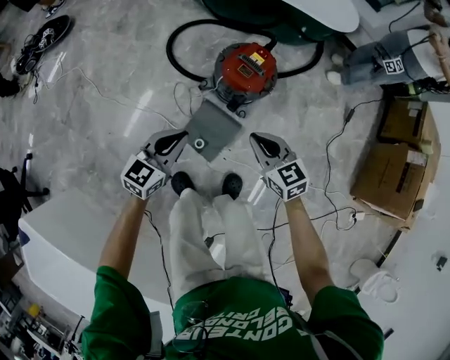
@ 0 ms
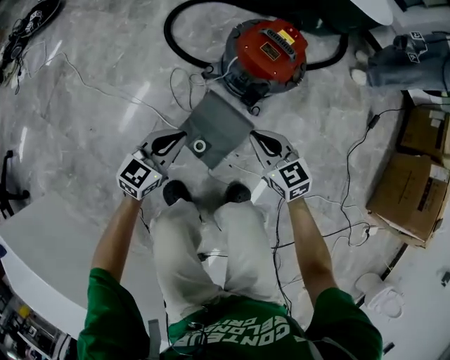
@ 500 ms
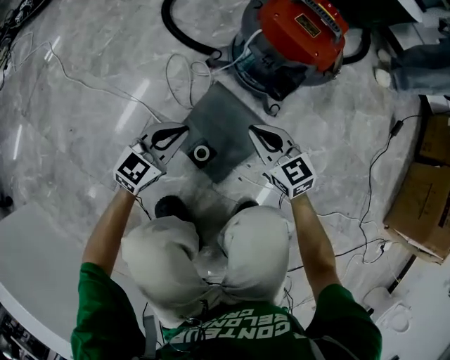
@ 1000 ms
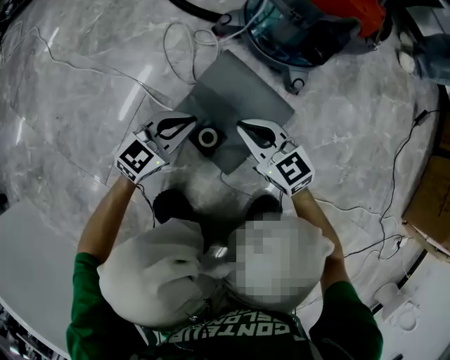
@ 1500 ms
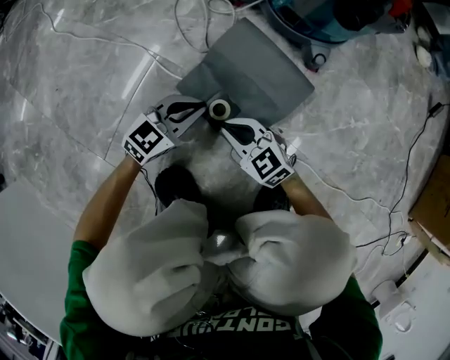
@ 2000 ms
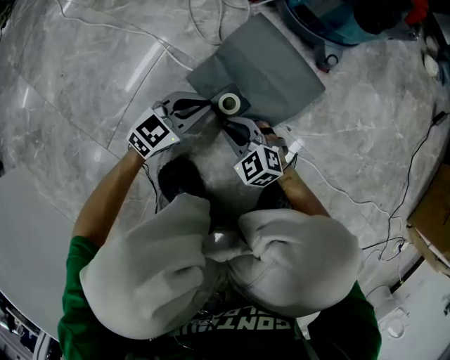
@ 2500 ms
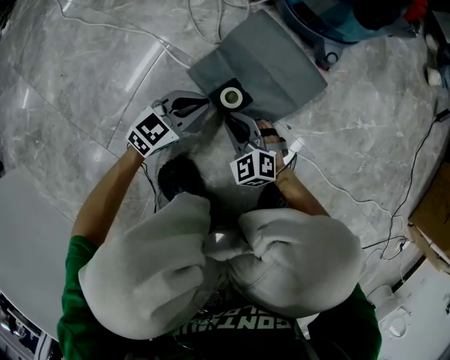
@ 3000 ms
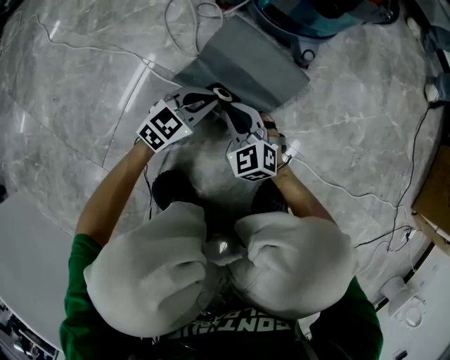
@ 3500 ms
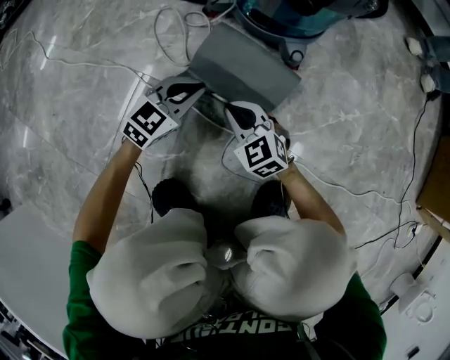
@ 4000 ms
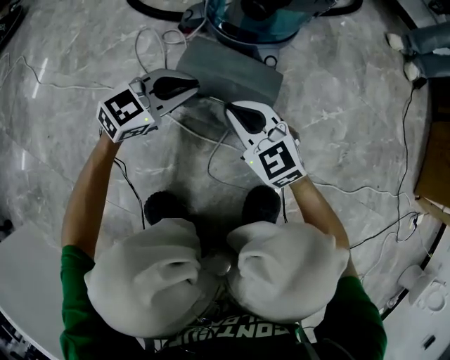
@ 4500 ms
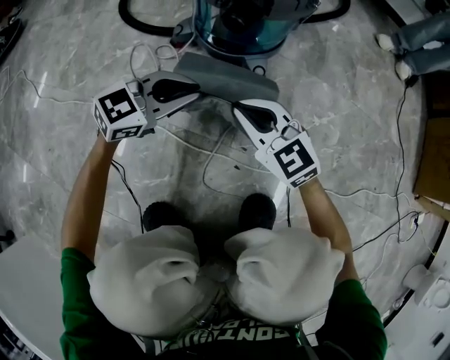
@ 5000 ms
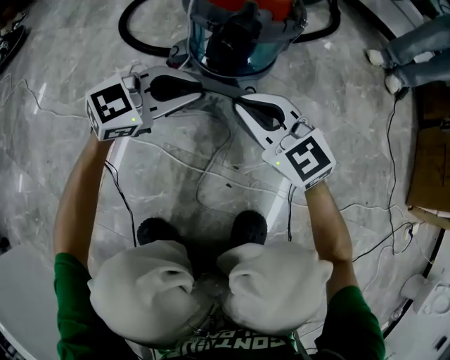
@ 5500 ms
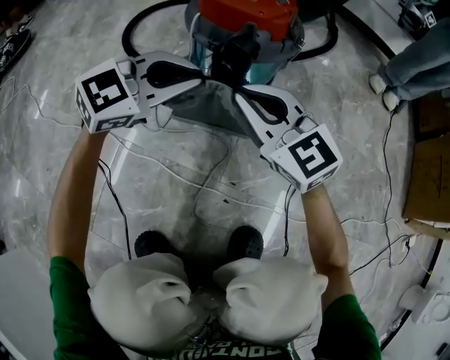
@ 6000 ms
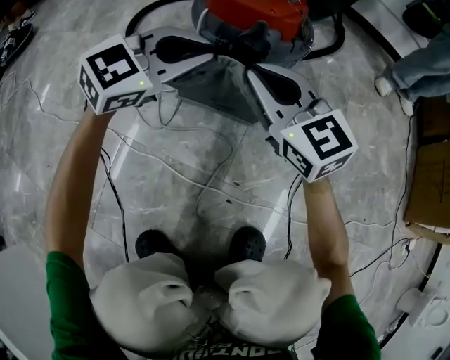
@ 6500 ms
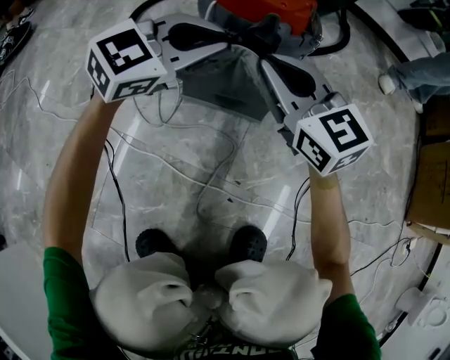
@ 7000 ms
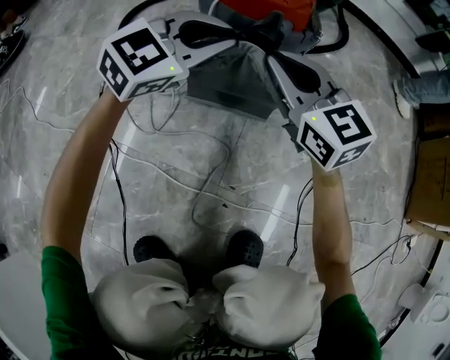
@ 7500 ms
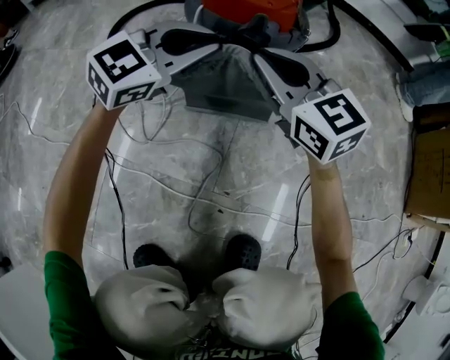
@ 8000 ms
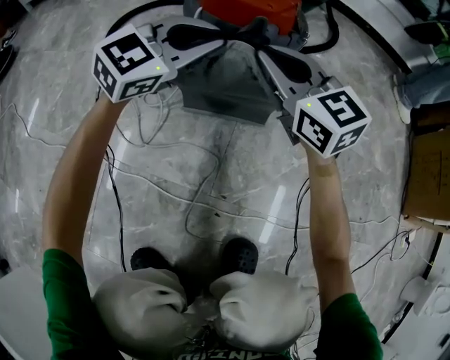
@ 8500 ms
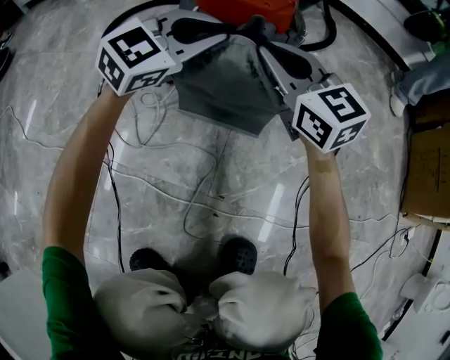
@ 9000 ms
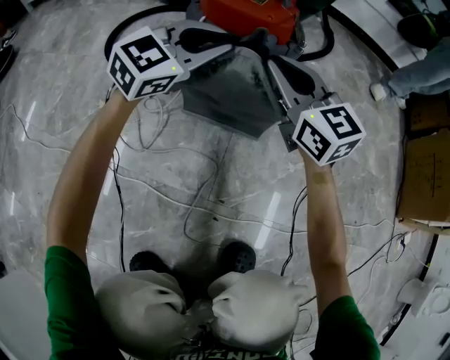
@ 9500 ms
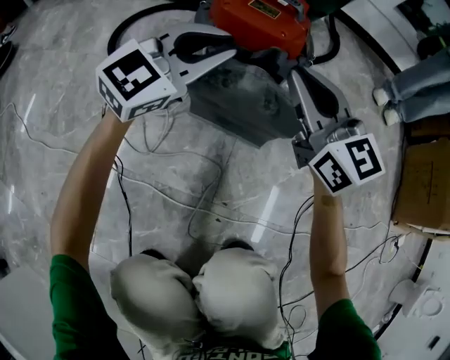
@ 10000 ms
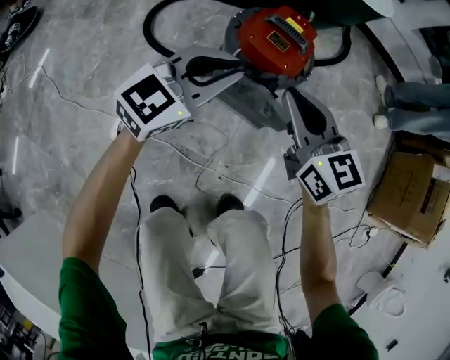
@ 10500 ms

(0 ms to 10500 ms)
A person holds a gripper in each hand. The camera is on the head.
0 ms - 2000 ms: Both grippers move downward, some 60 cm. The right gripper rotates about 30 degrees.
2000 ms - 4000 ms: The two grippers go about 5 cm forward. The right gripper rotates approximately 20 degrees.
4000 ms - 6500 ms: Both grippers travel together upward and forward, approximately 30 cm. The left gripper rotates some 20 degrees, while the right gripper turns by approximately 30 degrees.
6500 ms - 8500 ms: Both grippers move forward and to the right, some 10 cm.
8500 ms - 10500 ms: Both grippers travel together upward, about 20 cm.

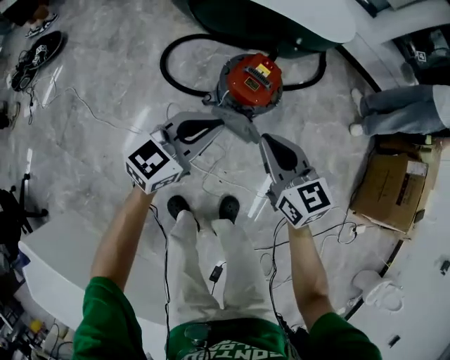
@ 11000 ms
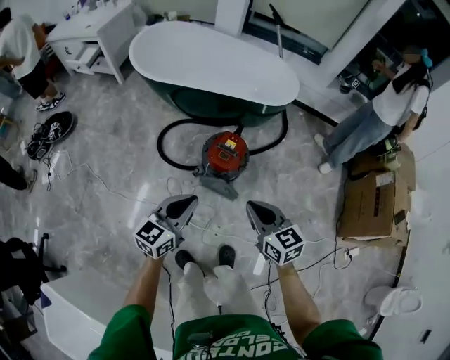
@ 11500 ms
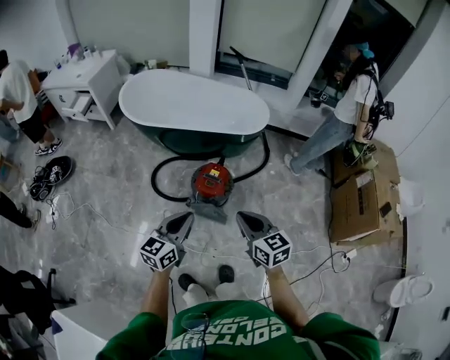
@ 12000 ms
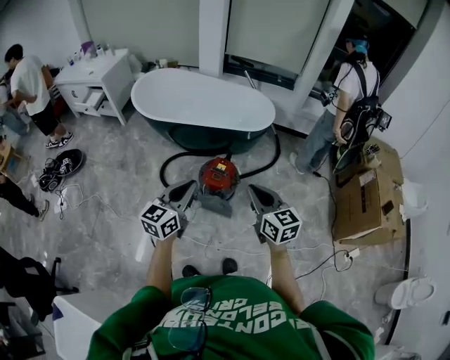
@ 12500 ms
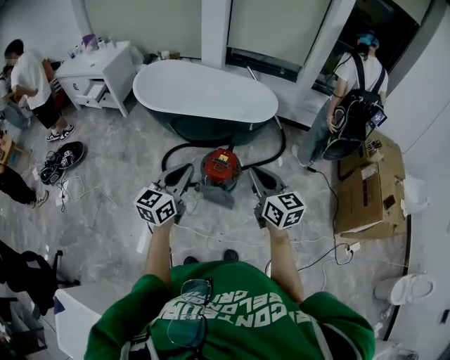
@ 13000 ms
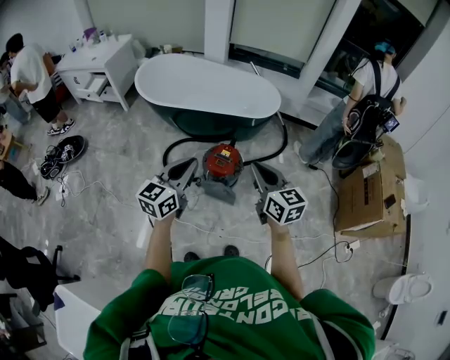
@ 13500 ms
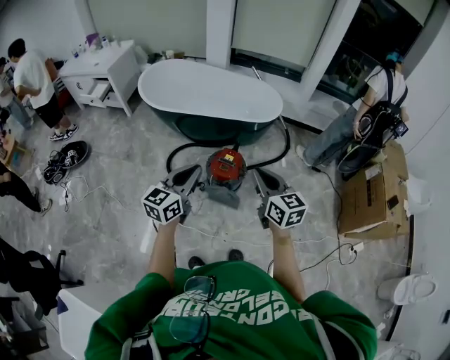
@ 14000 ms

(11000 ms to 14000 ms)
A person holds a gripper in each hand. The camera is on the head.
11000 ms - 12500 ms: The grippers both shift upward by roughly 35 cm.
12500 ms - 14000 ms: The grippers stay close to where they were, moving slightly.

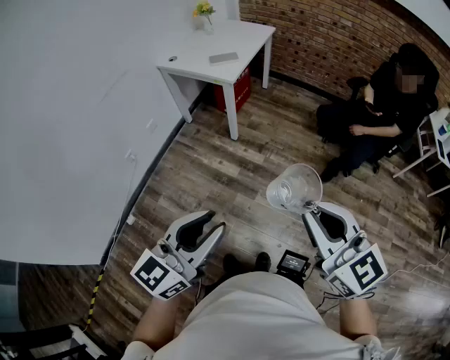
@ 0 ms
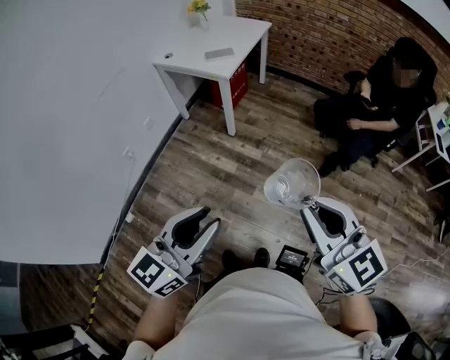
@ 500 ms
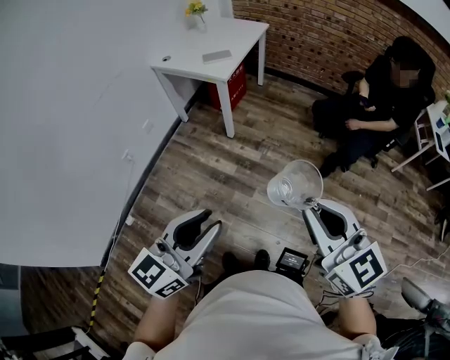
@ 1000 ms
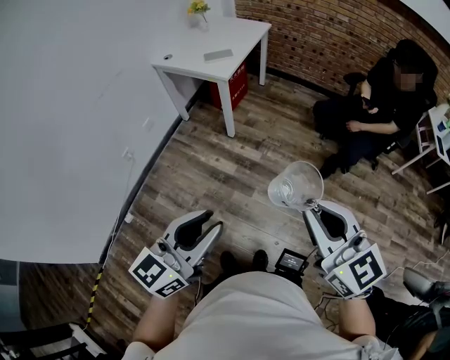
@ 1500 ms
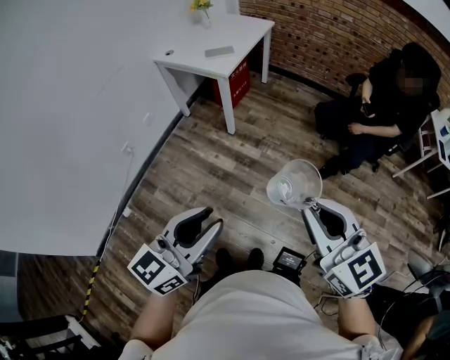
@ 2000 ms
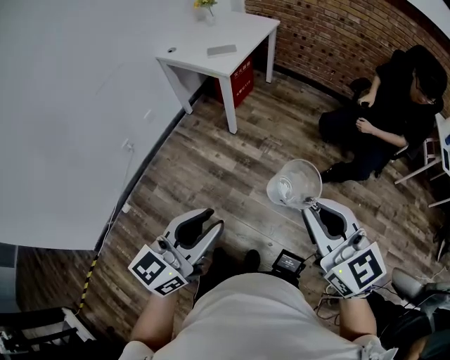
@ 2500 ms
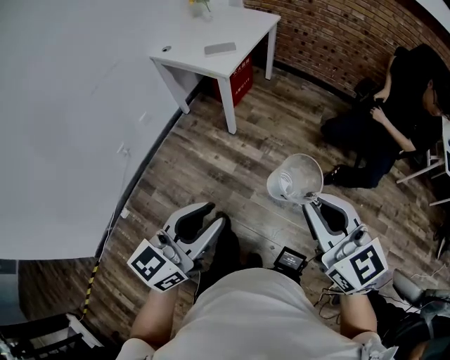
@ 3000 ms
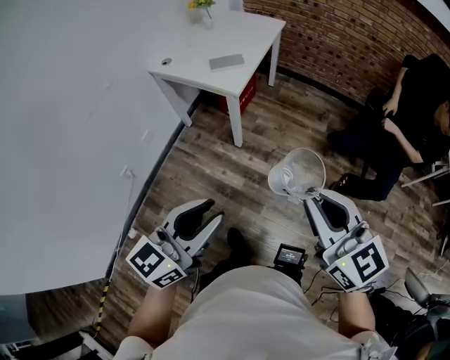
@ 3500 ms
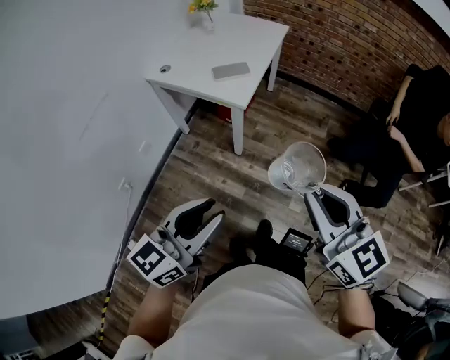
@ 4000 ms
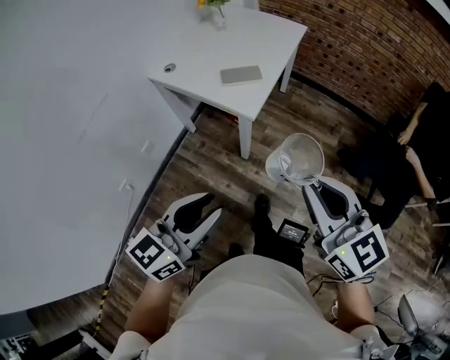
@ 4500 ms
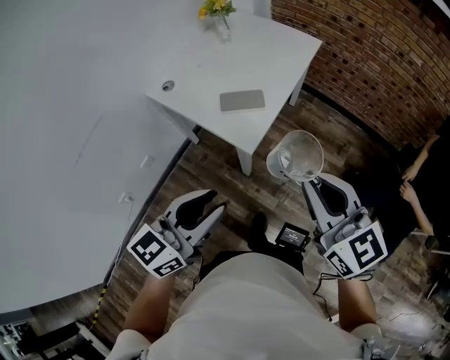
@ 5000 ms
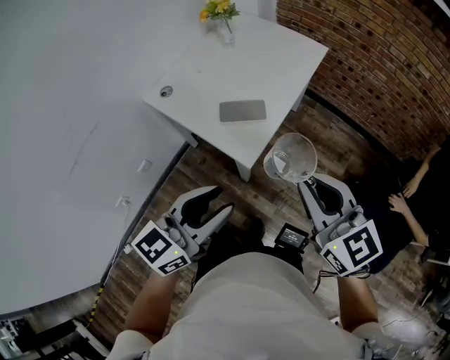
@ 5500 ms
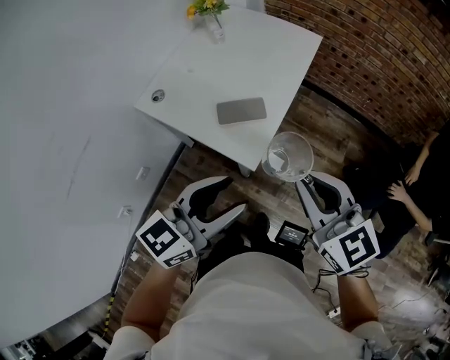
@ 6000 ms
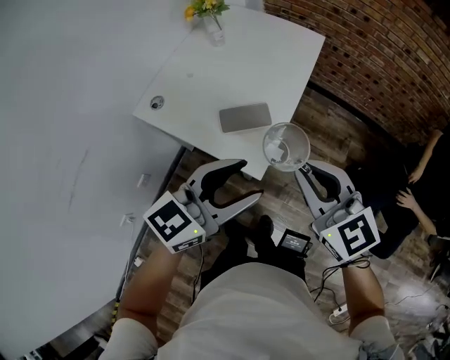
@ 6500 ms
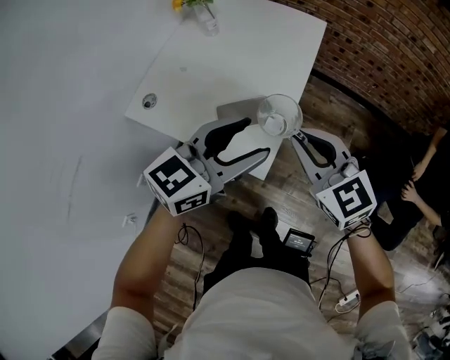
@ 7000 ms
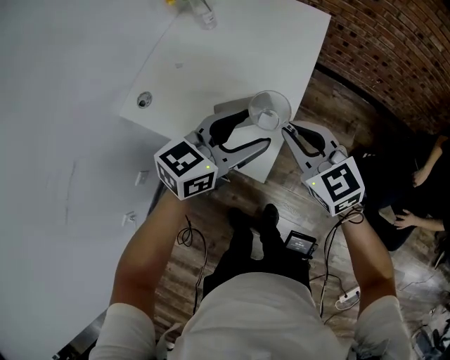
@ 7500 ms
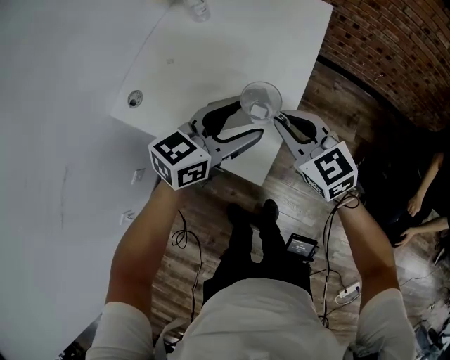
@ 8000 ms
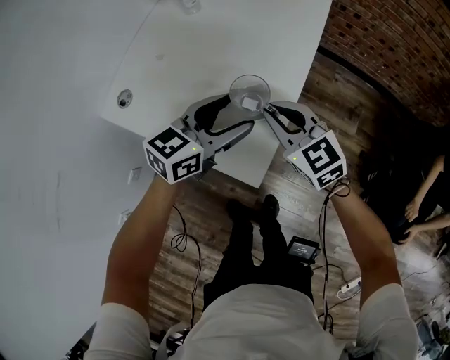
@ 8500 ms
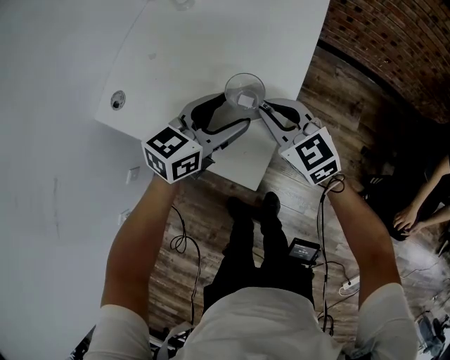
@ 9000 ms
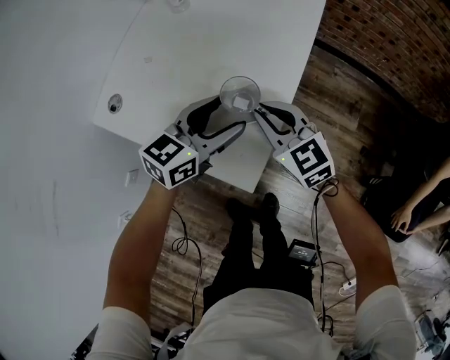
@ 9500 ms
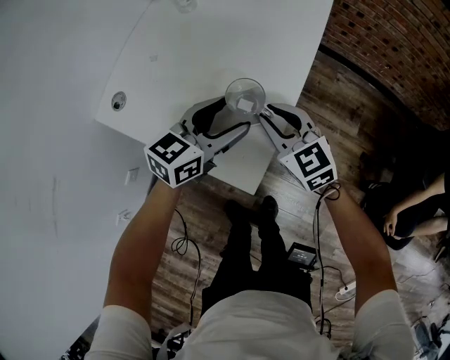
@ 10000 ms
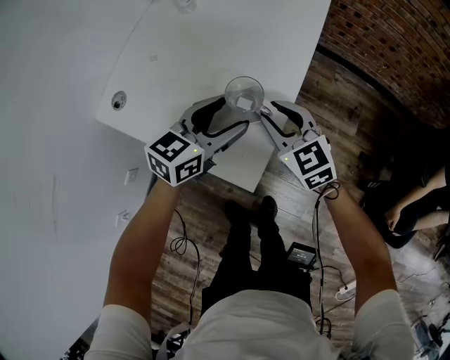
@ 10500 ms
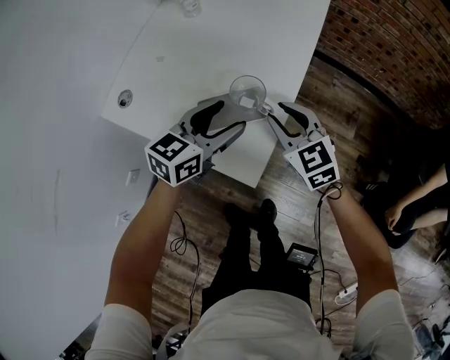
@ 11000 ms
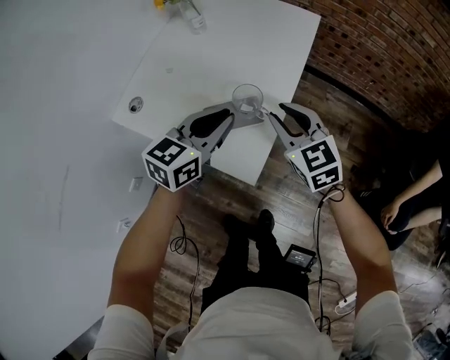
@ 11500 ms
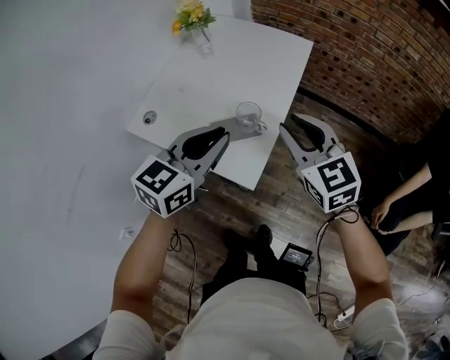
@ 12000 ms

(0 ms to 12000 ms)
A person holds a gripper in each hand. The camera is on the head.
0 ms - 2000 ms: The right gripper heads to the right, covering approximately 5 cm.
2000 ms - 4000 ms: Both grippers travel together forward and to the left, approximately 35 cm.
4000 ms - 6000 ms: Both grippers move forward, roughly 35 cm.
6000 ms - 8000 ms: Both grippers travel together forward and downward, roughly 25 cm.
8000 ms - 10000 ms: The two grippers go about 10 cm downward.
10000 ms - 12000 ms: The left gripper moves upward and backward, some 20 cm, and closes up. The right gripper shifts roughly 20 cm upward.

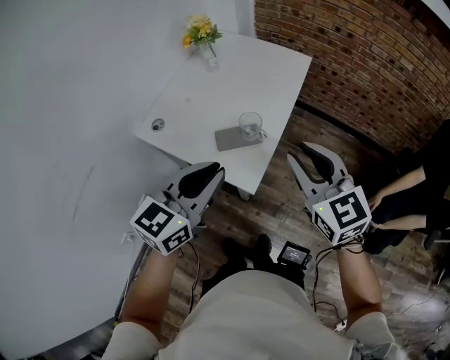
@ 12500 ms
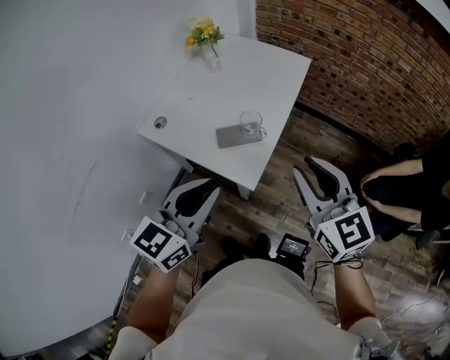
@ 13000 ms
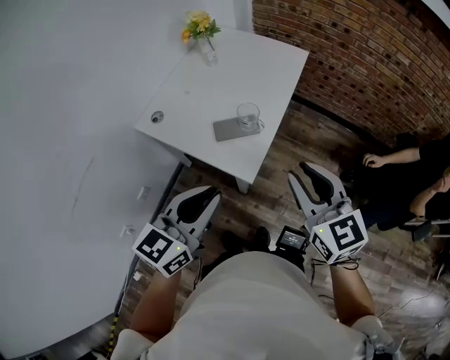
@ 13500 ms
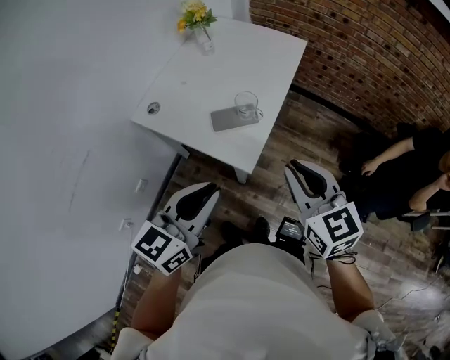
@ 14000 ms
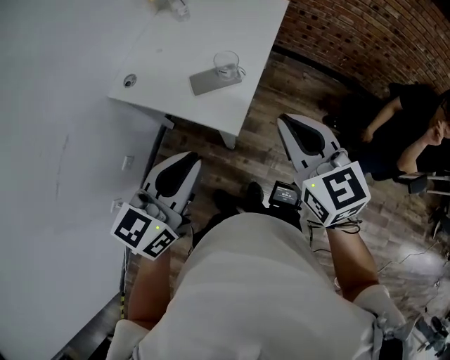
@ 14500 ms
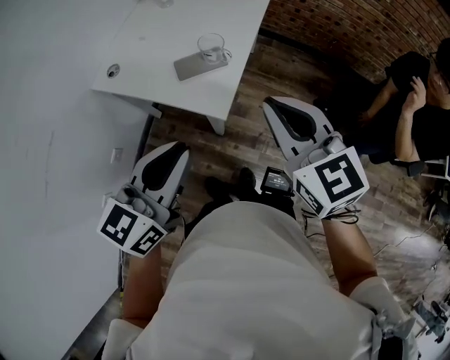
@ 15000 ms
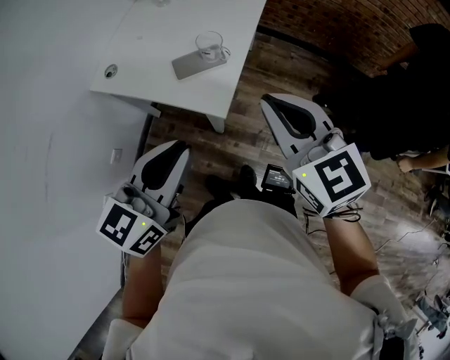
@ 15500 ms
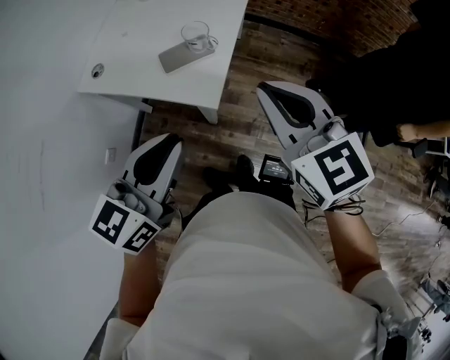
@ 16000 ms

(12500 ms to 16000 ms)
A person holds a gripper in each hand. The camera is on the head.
12500 ms - 14500 ms: Both grippers travel together backward, about 10 cm. The right gripper closes up.
14500 ms - 16000 ms: There are only small adjustments of the grippers.
